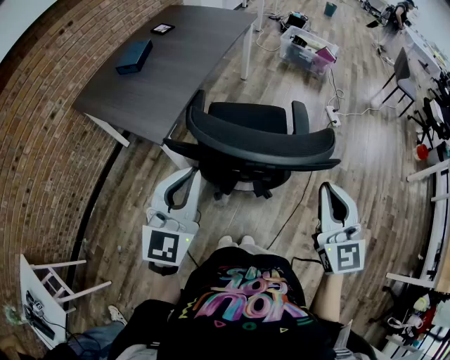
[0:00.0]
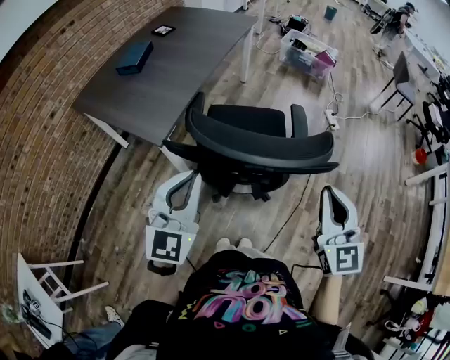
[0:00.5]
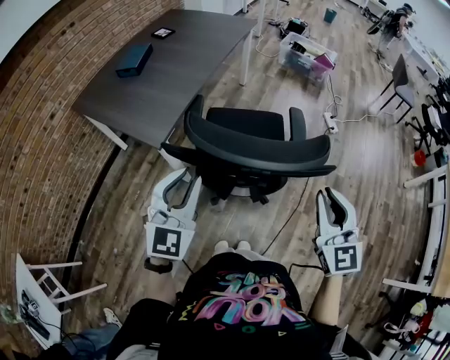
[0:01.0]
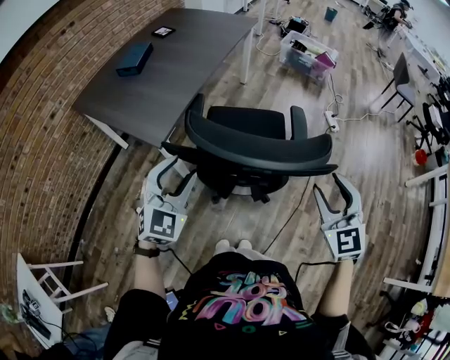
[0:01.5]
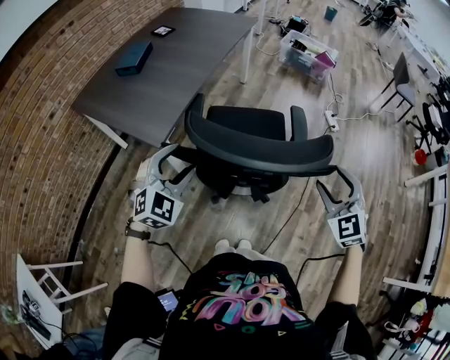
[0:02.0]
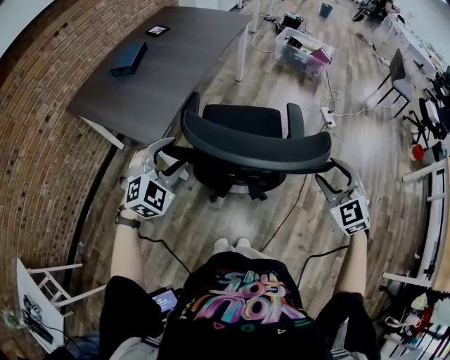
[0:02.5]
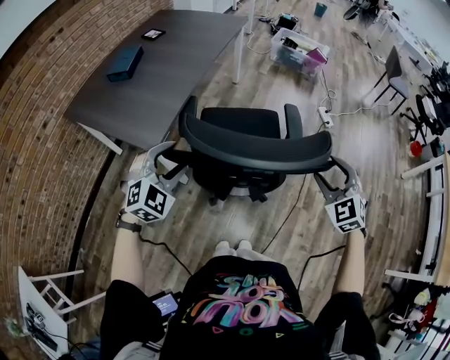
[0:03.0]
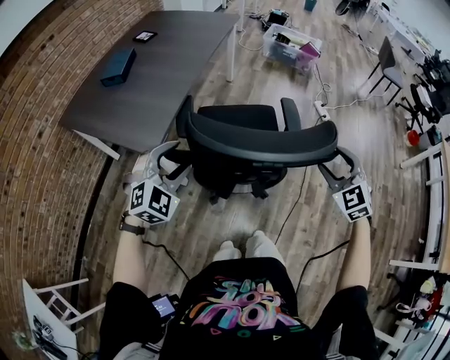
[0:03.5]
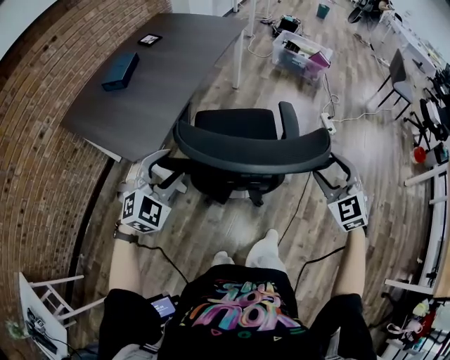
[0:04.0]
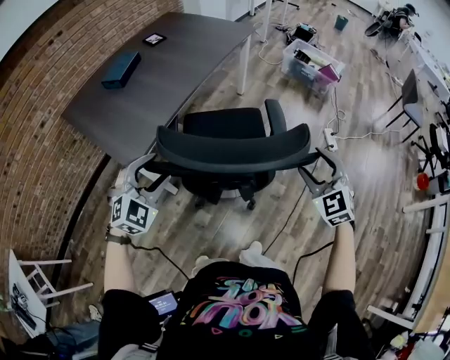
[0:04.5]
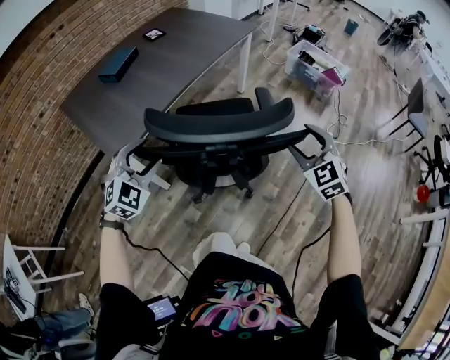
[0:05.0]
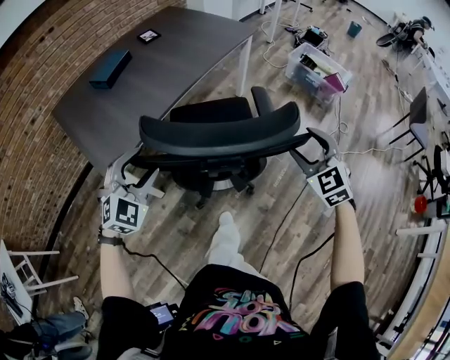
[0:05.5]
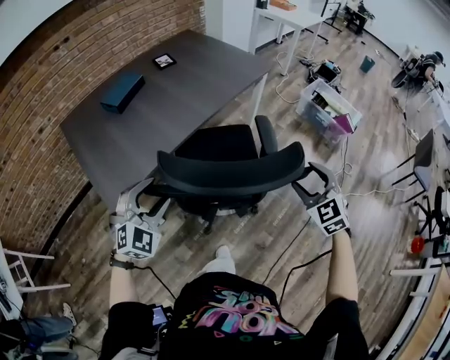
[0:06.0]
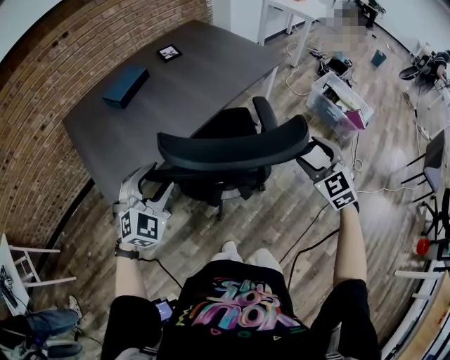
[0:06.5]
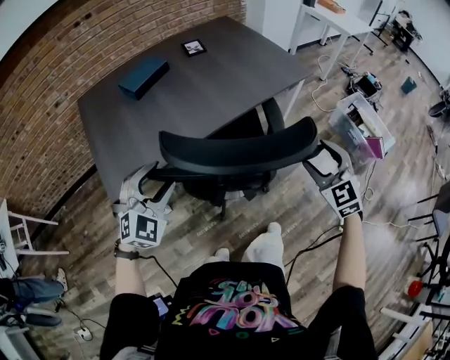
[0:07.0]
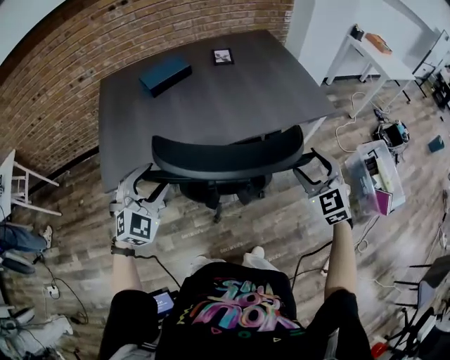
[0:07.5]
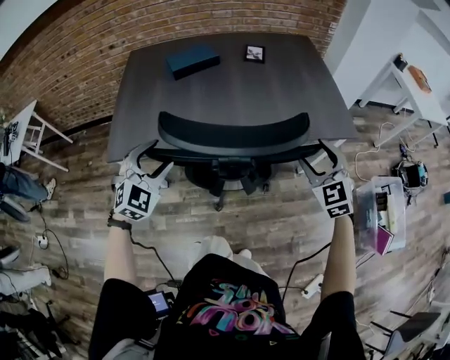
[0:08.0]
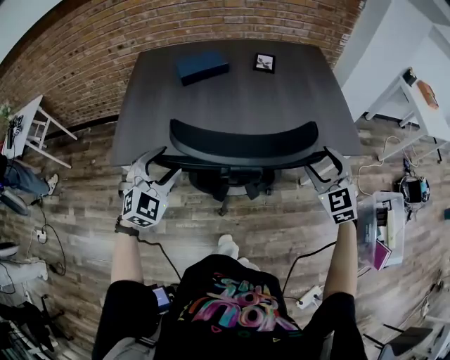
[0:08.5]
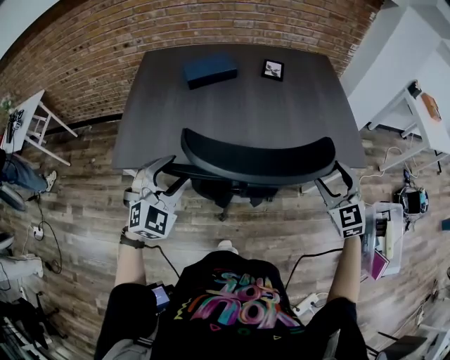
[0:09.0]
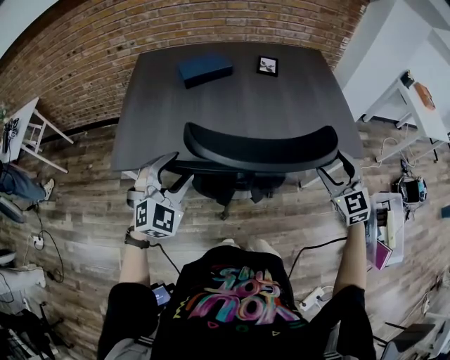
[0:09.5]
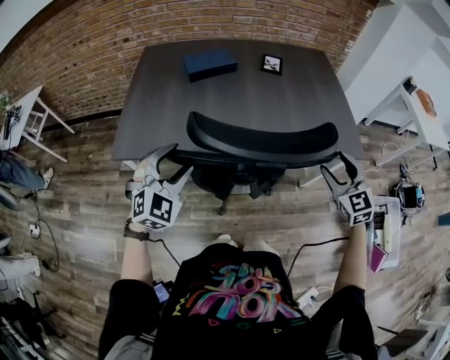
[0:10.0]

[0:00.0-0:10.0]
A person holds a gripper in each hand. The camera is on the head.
0.0 to 2.0 s: The two grippers go roughly 10 cm downward and forward. The right gripper changes its angle by about 30 degrees, and opens; the left gripper rotates roughly 40 degrees, and opens up.
2.0 to 4.0 s: The right gripper is displaced forward by roughly 10 cm. The left gripper travels forward by roughly 5 cm.
4.0 to 6.0 s: The right gripper is displaced forward by roughly 35 cm; the left gripper moves forward and to the right, some 20 cm, and swivels some 20 degrees.
6.0 to 8.0 s: The left gripper changes place by roughly 20 cm, and turns by about 40 degrees. Meanwhile the right gripper ends up some 40 cm from where it was, and changes its angle by roughly 40 degrees.
8.0 to 10.0 s: The grippers make only small movements.

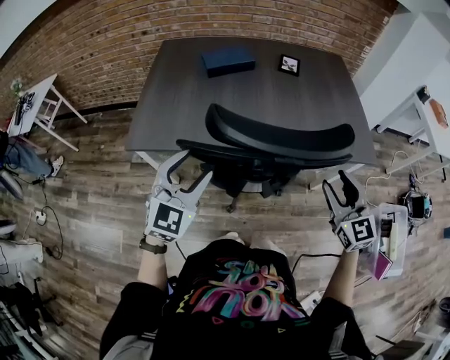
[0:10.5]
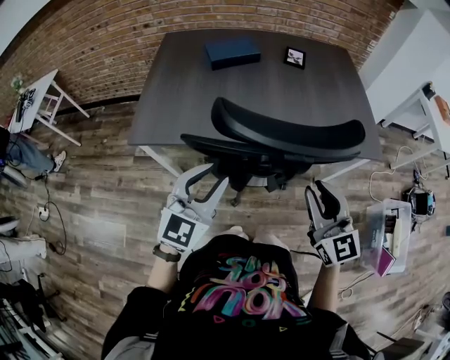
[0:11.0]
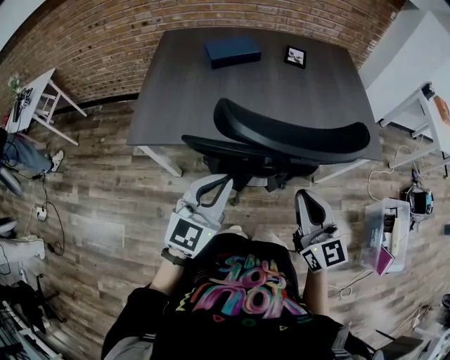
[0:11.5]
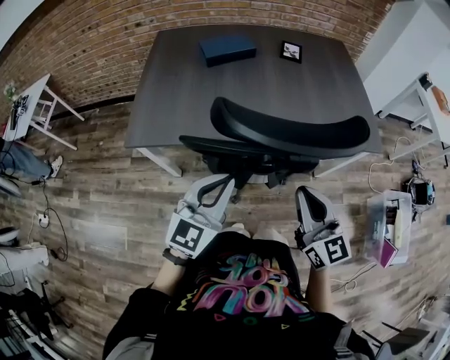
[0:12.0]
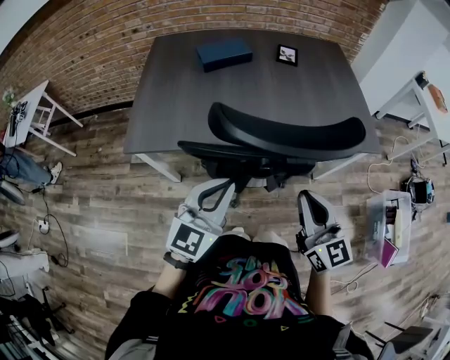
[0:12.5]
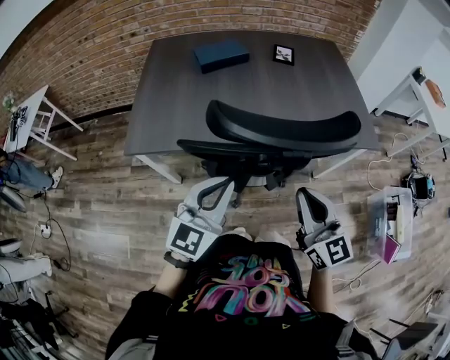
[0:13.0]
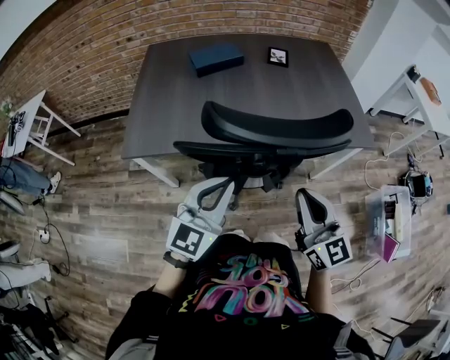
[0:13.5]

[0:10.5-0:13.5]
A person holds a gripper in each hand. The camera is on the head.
10.5 to 12.0 s: The left gripper heads to the right, covering roughly 5 cm, rotates some 20 degrees, and closes up, while the right gripper moves to the left and backward, about 15 cm, and closes up.
12.0 to 13.5 s: The grippers make only small movements.

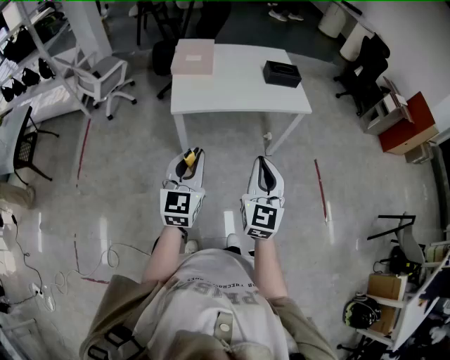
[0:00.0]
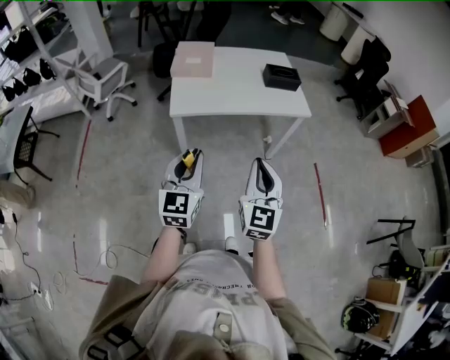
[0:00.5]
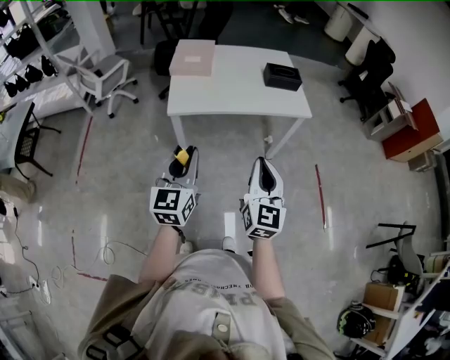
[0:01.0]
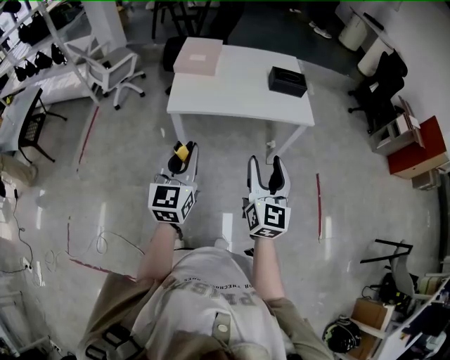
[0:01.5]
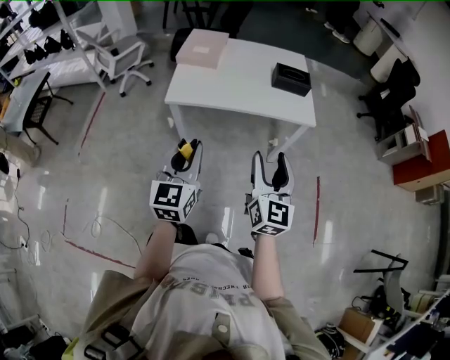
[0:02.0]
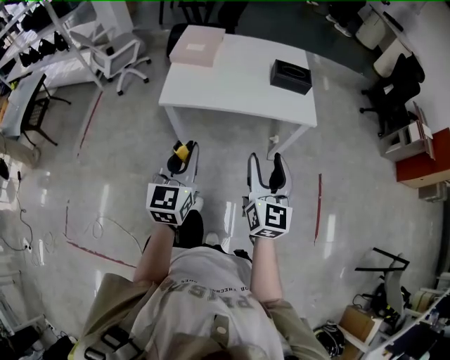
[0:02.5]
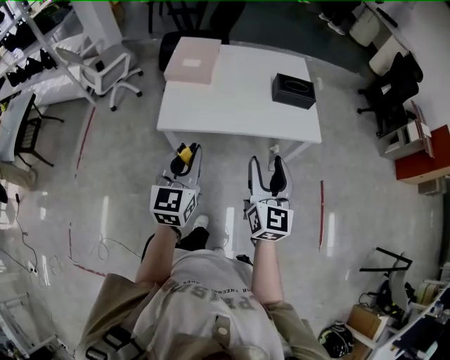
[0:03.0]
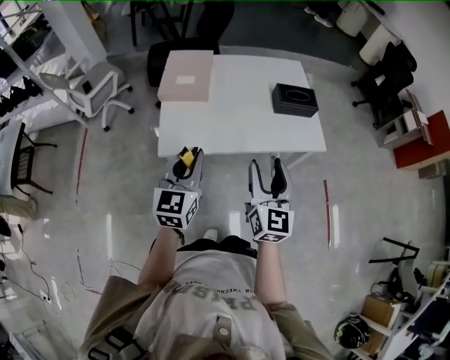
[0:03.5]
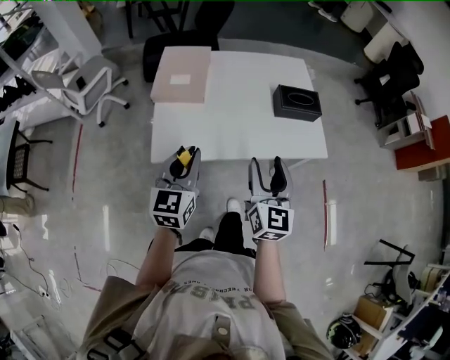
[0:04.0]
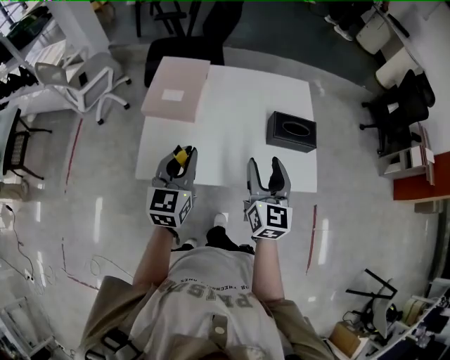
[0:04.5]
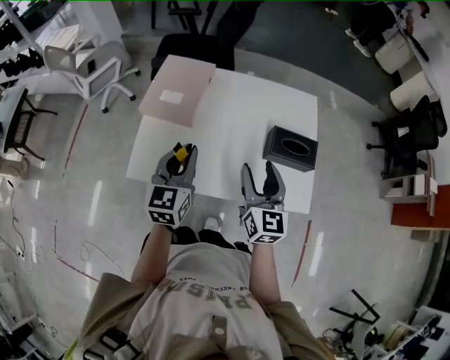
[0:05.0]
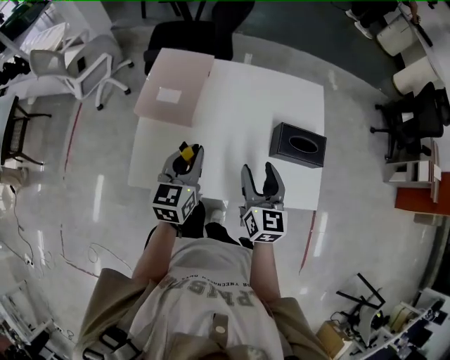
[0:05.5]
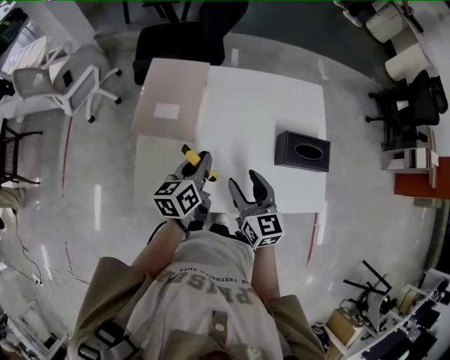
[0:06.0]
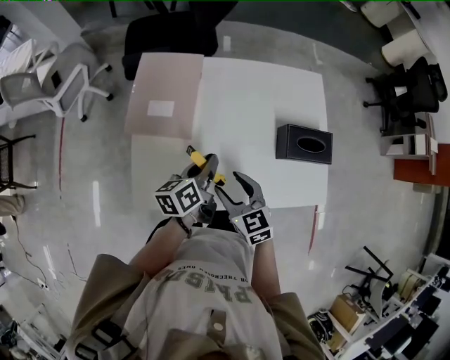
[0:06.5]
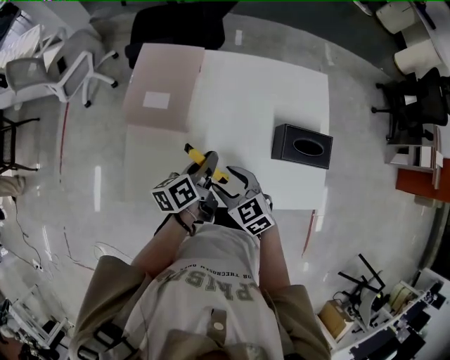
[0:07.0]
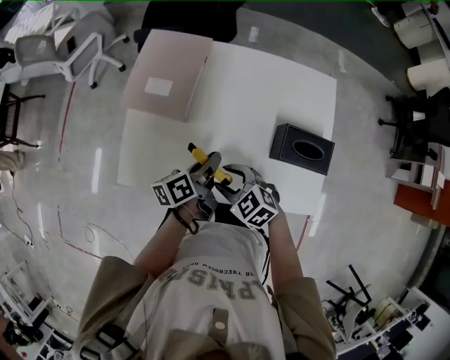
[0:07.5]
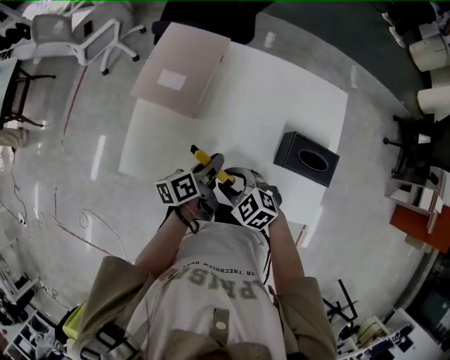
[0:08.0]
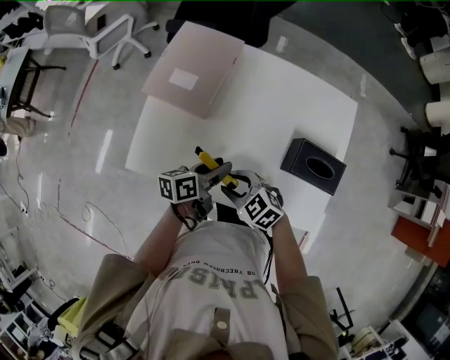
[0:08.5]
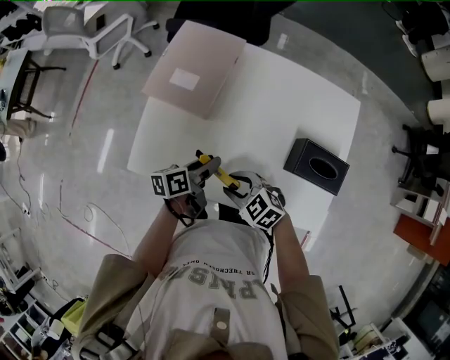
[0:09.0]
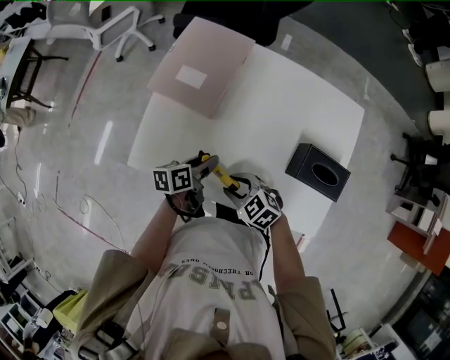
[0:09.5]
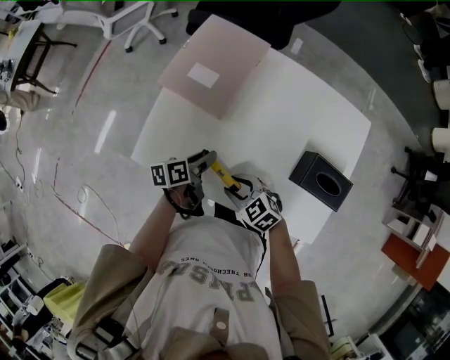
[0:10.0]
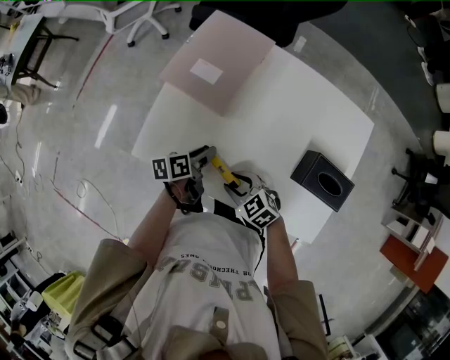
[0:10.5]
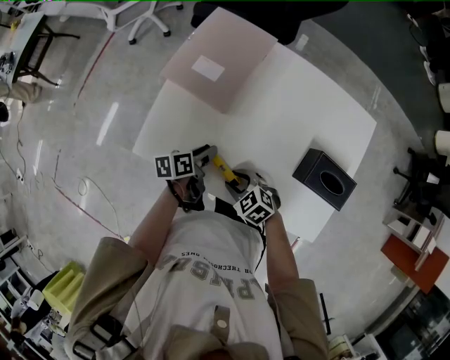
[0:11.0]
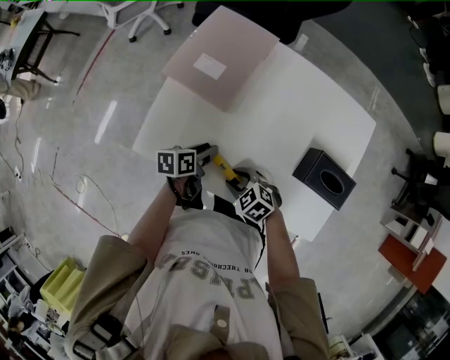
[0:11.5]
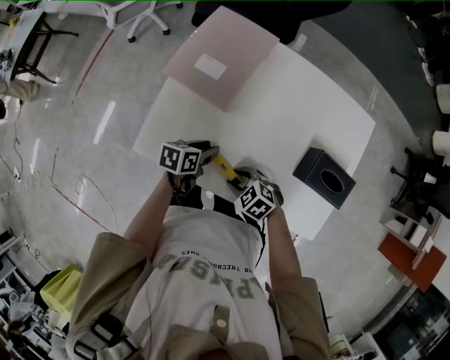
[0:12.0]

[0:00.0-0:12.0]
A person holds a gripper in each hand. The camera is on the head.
0.0 to 2.0 s: The right gripper travels to the right and forward by about 15 cm, and opens its fingers; the left gripper heads to the right, covering some 10 cm.
2.0 to 4.0 s: Both grippers travel together forward, approximately 30 cm.
4.0 to 6.0 s: Both grippers move forward and downward, approximately 25 cm. The right gripper rotates about 30 degrees. Meanwhile the left gripper changes its angle by about 40 degrees.
6.0 to 8.0 s: The left gripper changes place by roughly 10 cm, and turns by some 30 degrees. The right gripper moves downward, roughly 10 cm, and turns by about 70 degrees.
8.0 to 10.0 s: The left gripper travels to the left and downward by about 10 cm, and opens. Meanwhile the right gripper shifts by approximately 5 cm.
10.0 to 12.0 s: The left gripper rotates roughly 30 degrees.

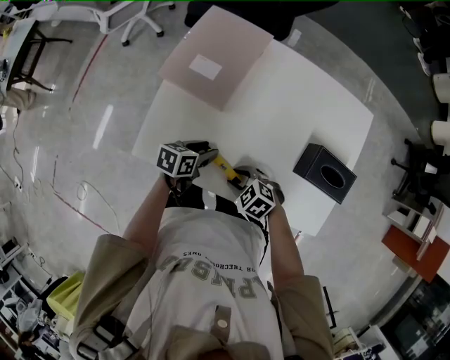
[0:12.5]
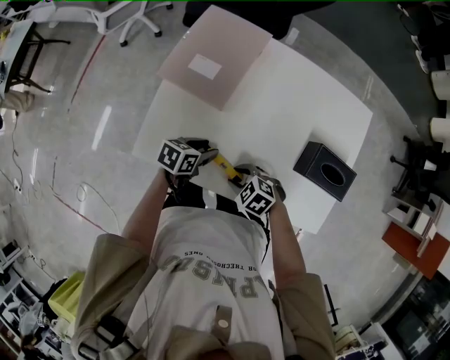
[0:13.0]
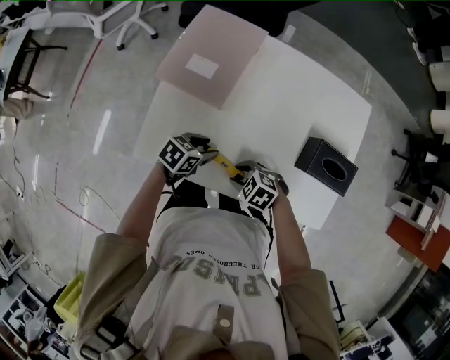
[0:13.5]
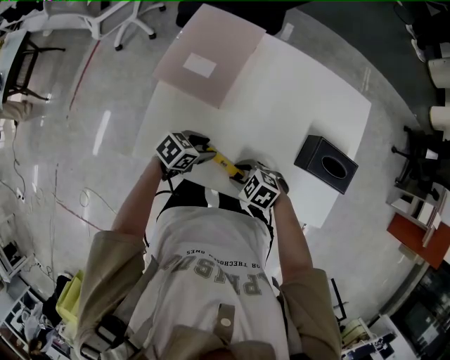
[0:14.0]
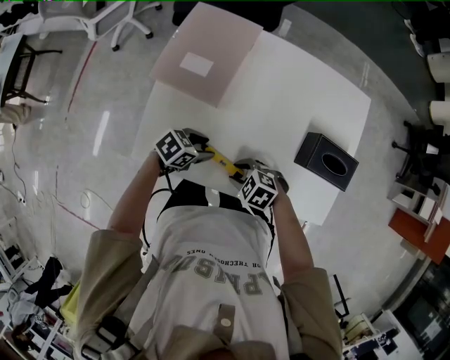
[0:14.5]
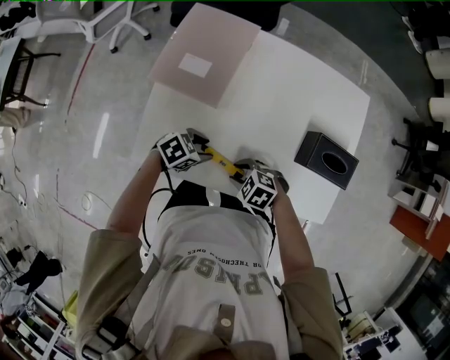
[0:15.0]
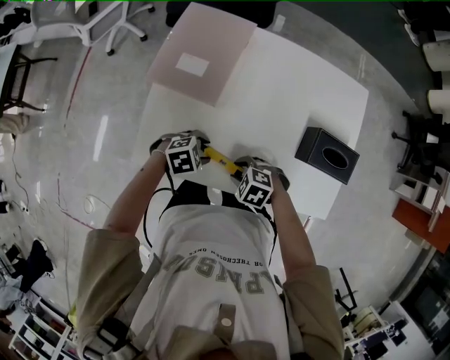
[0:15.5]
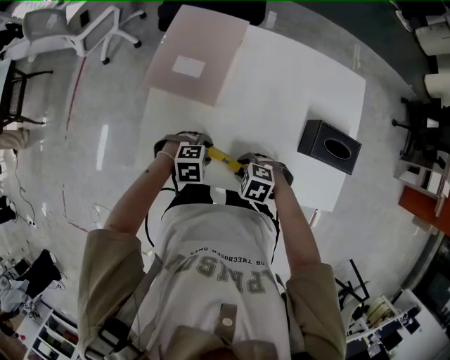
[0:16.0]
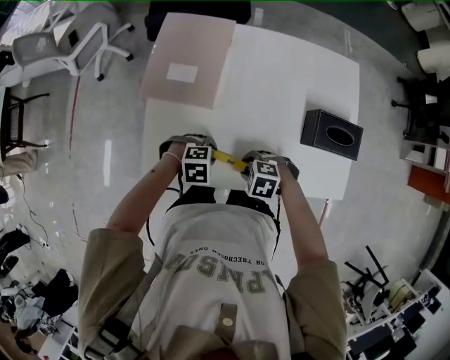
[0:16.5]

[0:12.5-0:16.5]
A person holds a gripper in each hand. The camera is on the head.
12.5 to 14.5 s: The left gripper turns by roughly 40 degrees.
14.5 to 16.5 s: The left gripper rotates around the line of its fingers by about 50 degrees, clockwise from behind.
